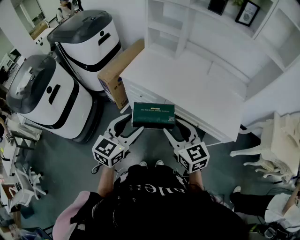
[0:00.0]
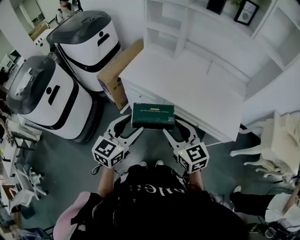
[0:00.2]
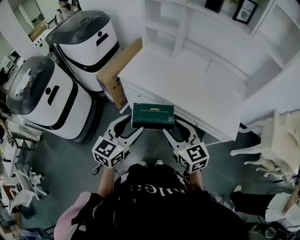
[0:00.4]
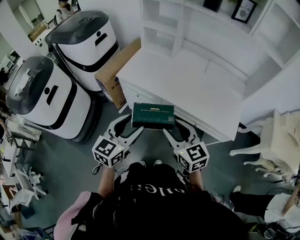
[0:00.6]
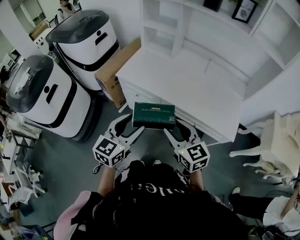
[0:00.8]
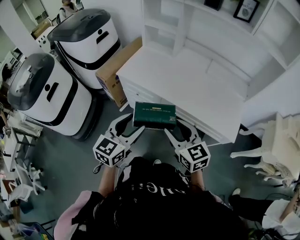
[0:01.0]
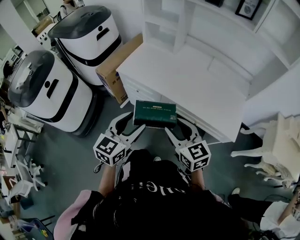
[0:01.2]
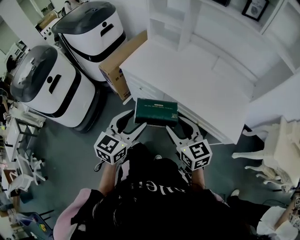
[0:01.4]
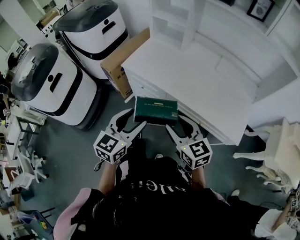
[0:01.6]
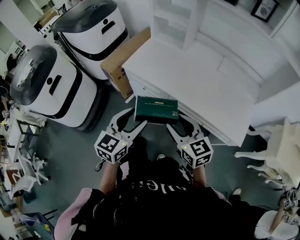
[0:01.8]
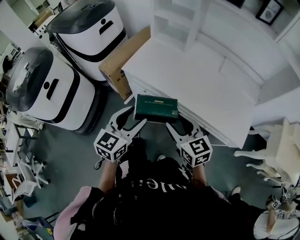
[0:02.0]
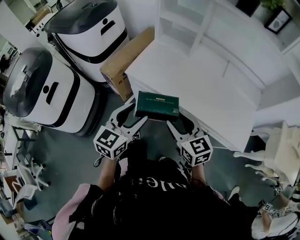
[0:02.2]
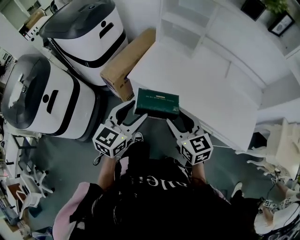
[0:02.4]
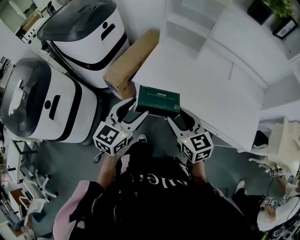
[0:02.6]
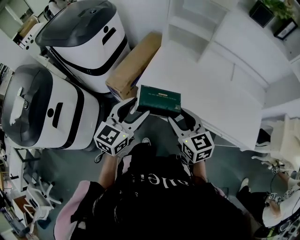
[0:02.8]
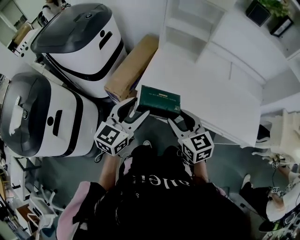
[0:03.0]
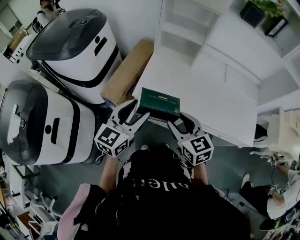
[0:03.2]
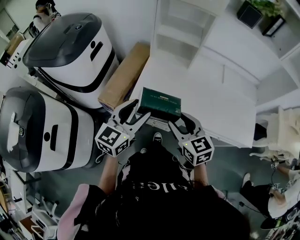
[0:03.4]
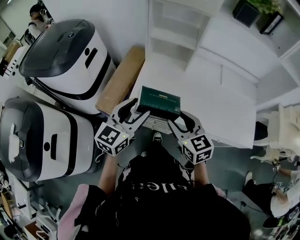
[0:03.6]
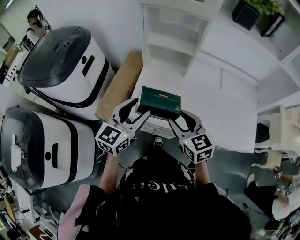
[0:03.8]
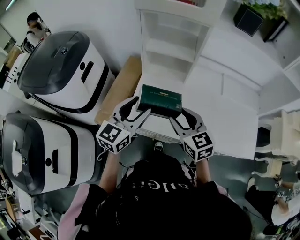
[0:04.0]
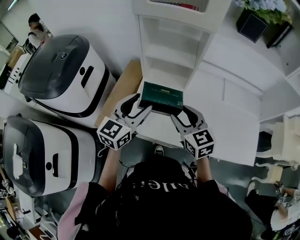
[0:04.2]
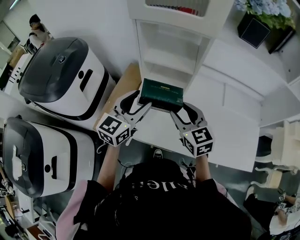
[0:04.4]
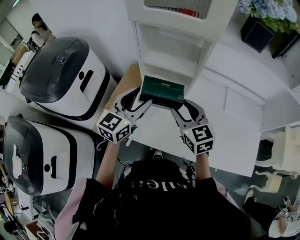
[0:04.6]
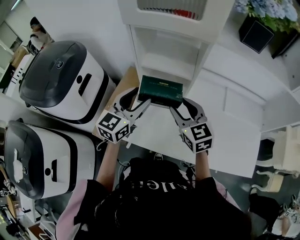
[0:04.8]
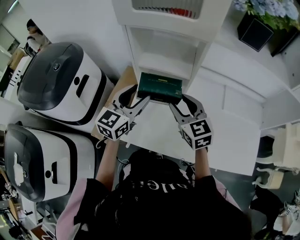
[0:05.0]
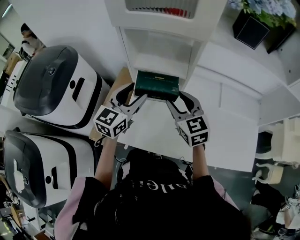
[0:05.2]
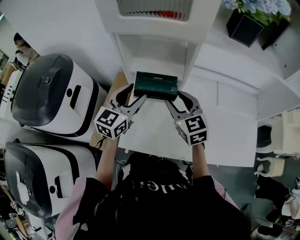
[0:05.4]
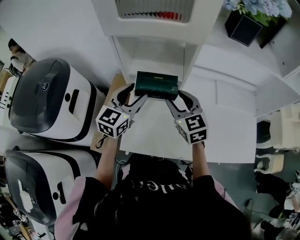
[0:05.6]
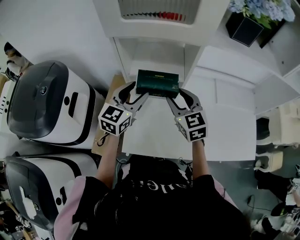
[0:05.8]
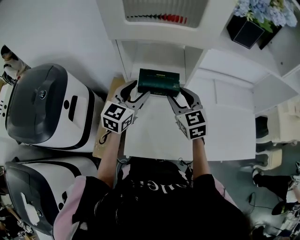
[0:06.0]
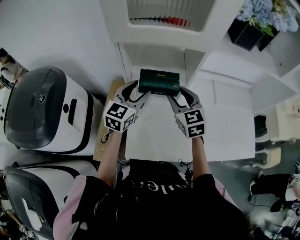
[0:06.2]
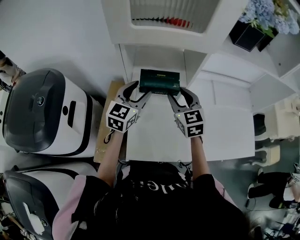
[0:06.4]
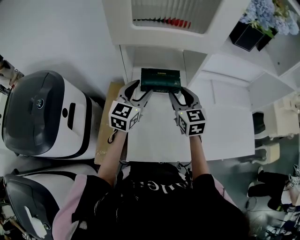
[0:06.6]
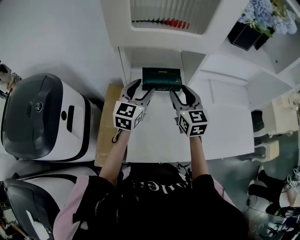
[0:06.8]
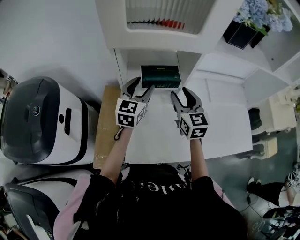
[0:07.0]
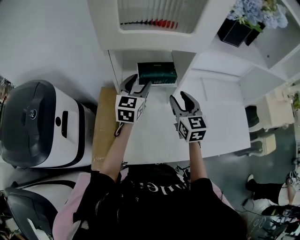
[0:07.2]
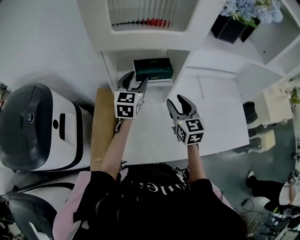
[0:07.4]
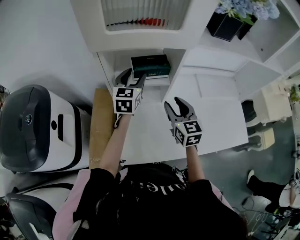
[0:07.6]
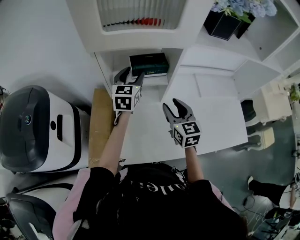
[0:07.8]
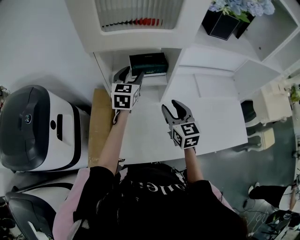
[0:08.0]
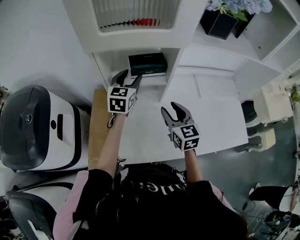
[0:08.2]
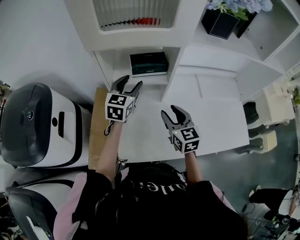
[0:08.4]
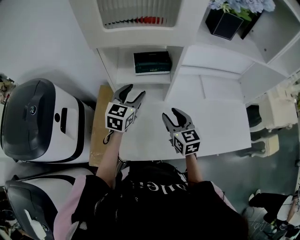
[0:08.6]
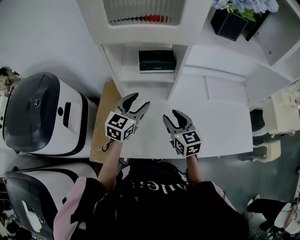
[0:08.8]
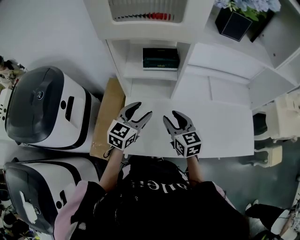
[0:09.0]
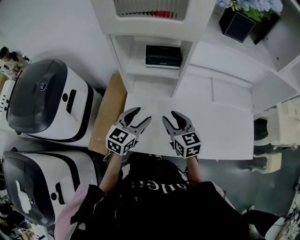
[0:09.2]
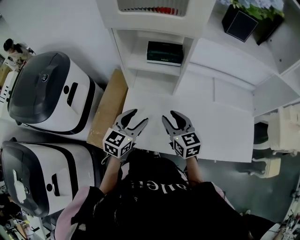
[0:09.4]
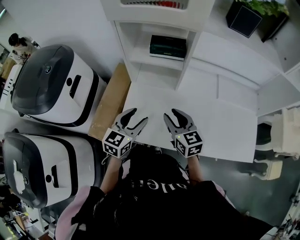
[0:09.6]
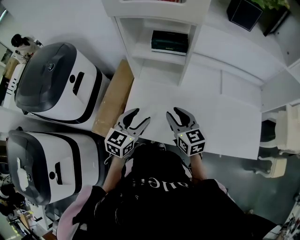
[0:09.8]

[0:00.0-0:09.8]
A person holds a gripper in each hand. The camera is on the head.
0:00.0 to 0:01.4: The grippers both shift to the right by approximately 5 cm.
0:01.4 to 0:02.8: The left gripper shifts approximately 30 cm forward and to the left; the right gripper travels to the left and forward by approximately 30 cm.
0:02.8 to 0:04.2: Both grippers move forward, some 25 cm.
0:04.2 to 0:05.6: Both grippers move forward, about 15 cm.
0:05.6 to 0:07.0: The right gripper shifts some 5 cm forward, and rotates some 20 degrees. Meanwhile the left gripper moves forward, approximately 10 cm.
0:07.0 to 0:08.4: The right gripper goes roughly 10 cm backward and downward.
0:08.4 to 0:09.8: The right gripper moves backward, approximately 10 cm, and rotates some 20 degrees, while the left gripper is displaced backward by roughly 25 cm.

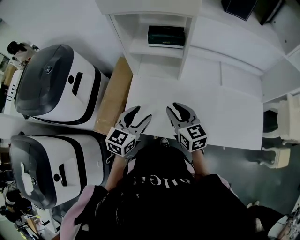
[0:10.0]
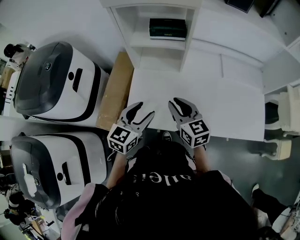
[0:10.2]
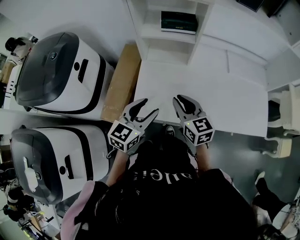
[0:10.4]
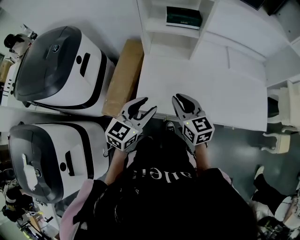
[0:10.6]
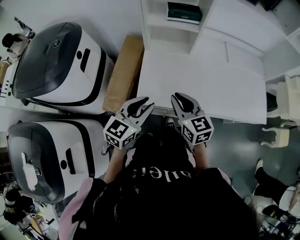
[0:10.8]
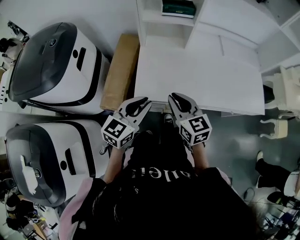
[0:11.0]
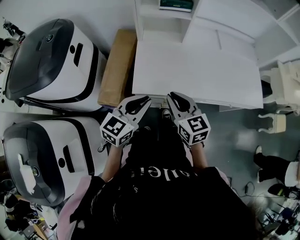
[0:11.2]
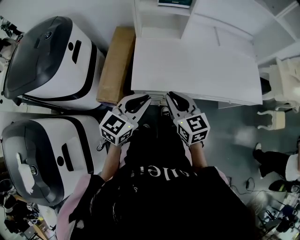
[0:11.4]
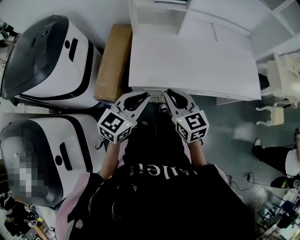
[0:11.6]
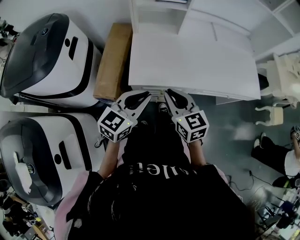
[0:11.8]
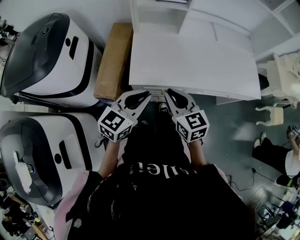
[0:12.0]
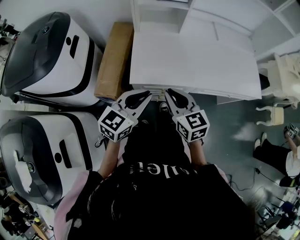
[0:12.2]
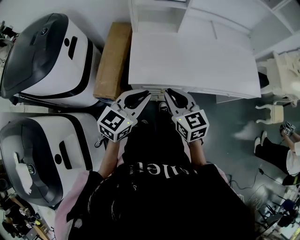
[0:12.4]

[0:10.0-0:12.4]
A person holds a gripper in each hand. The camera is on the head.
0:10.0 to 0:11.2: Both grippers move backward and to the left, roughly 20 cm. The left gripper closes its fingers.
0:11.2 to 0:12.4: The grippers stay close to where they were, moving slightly.

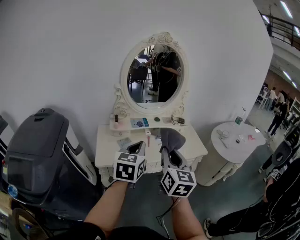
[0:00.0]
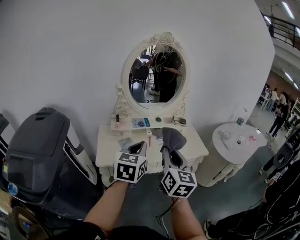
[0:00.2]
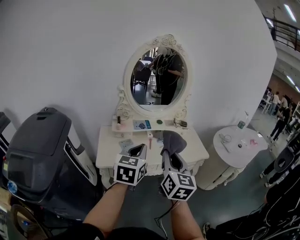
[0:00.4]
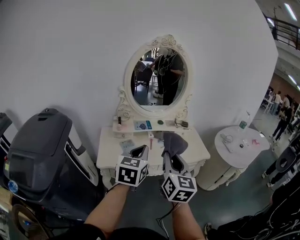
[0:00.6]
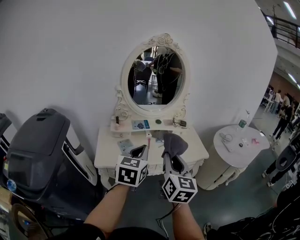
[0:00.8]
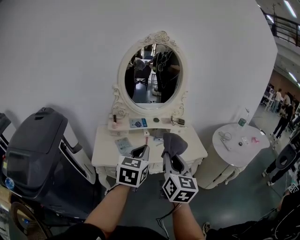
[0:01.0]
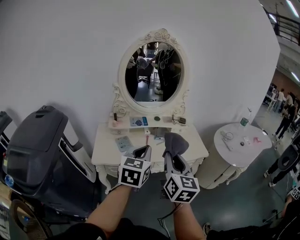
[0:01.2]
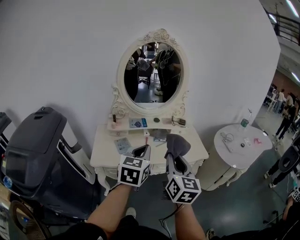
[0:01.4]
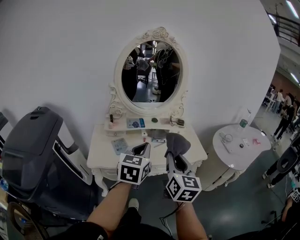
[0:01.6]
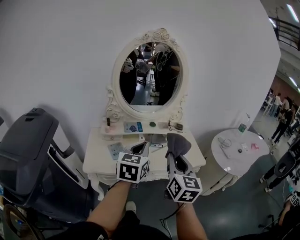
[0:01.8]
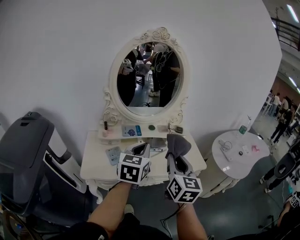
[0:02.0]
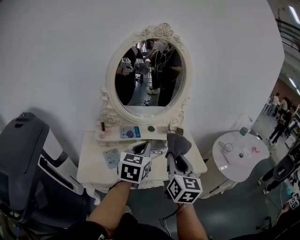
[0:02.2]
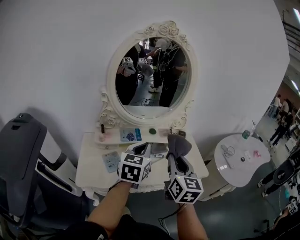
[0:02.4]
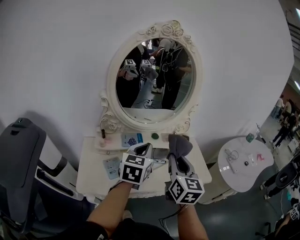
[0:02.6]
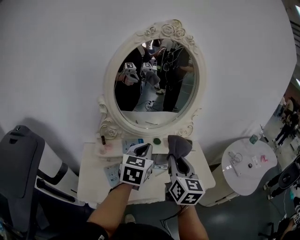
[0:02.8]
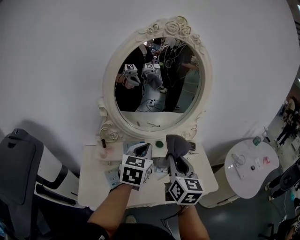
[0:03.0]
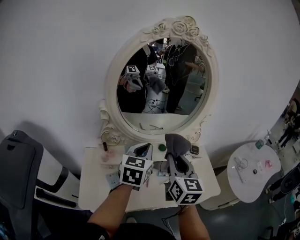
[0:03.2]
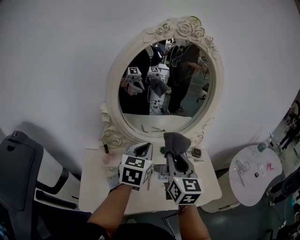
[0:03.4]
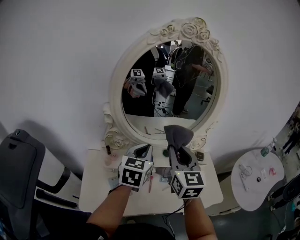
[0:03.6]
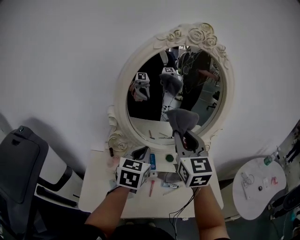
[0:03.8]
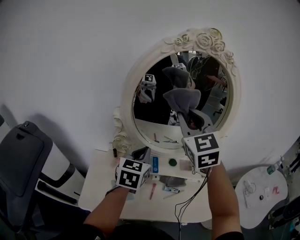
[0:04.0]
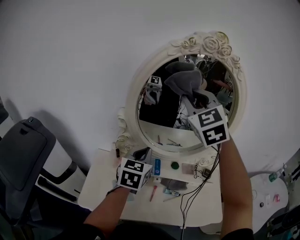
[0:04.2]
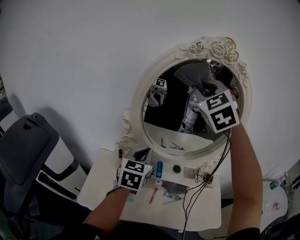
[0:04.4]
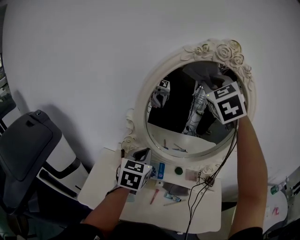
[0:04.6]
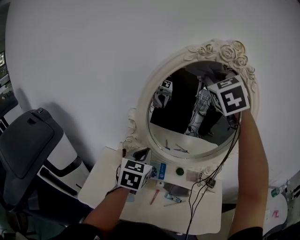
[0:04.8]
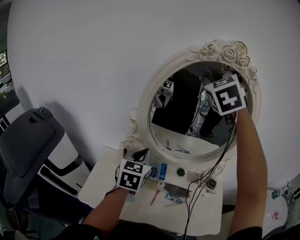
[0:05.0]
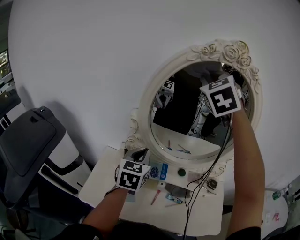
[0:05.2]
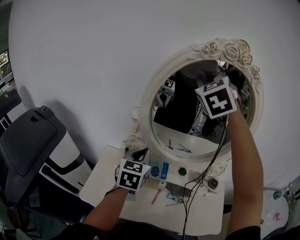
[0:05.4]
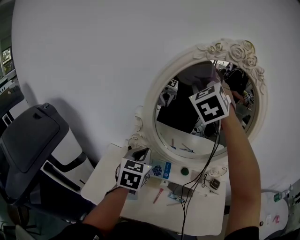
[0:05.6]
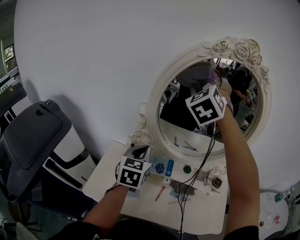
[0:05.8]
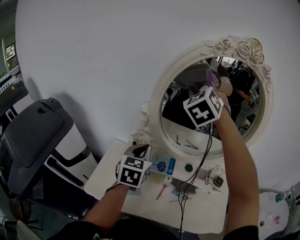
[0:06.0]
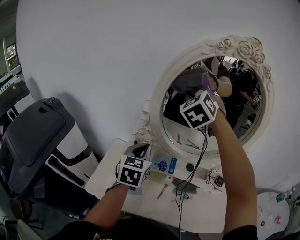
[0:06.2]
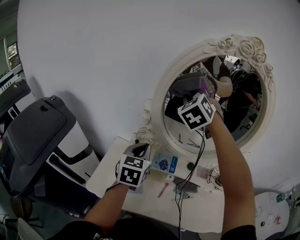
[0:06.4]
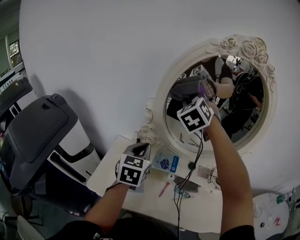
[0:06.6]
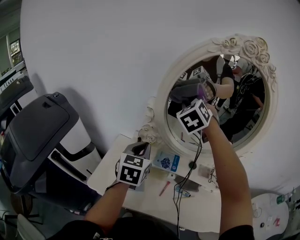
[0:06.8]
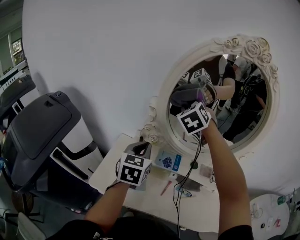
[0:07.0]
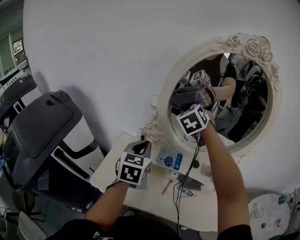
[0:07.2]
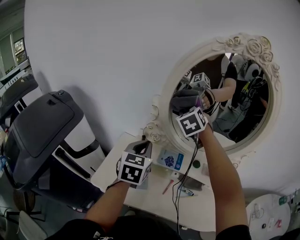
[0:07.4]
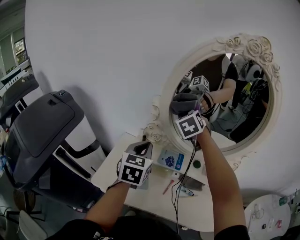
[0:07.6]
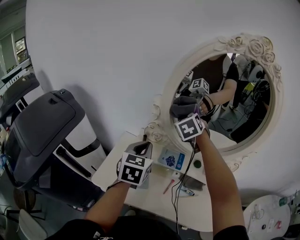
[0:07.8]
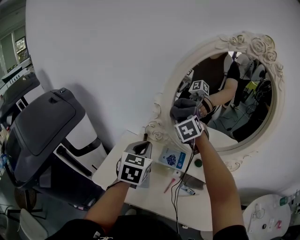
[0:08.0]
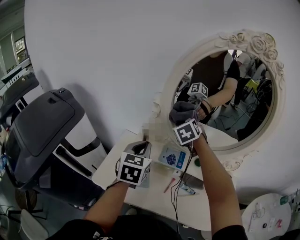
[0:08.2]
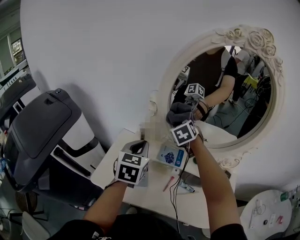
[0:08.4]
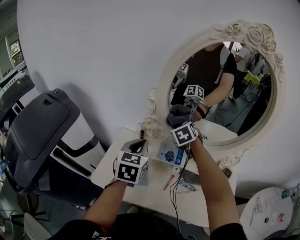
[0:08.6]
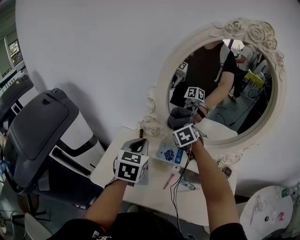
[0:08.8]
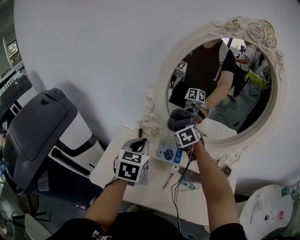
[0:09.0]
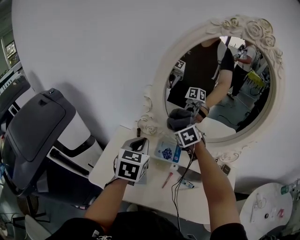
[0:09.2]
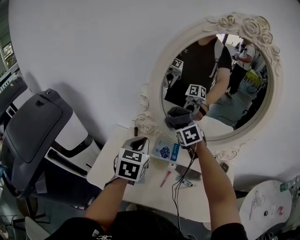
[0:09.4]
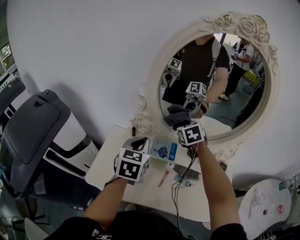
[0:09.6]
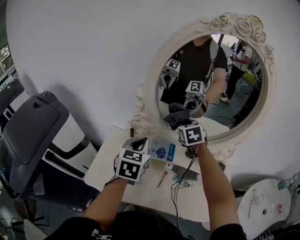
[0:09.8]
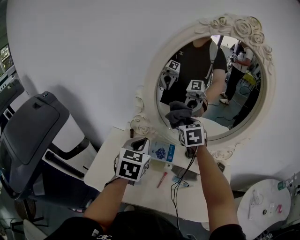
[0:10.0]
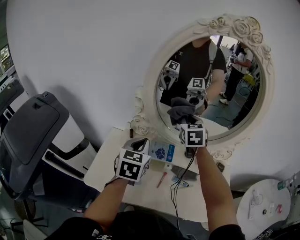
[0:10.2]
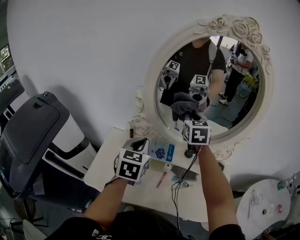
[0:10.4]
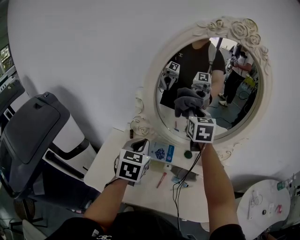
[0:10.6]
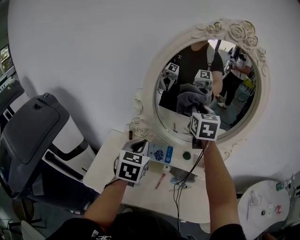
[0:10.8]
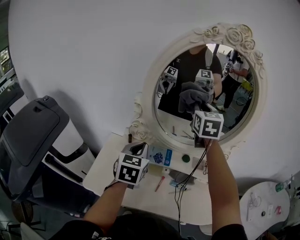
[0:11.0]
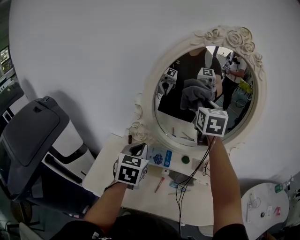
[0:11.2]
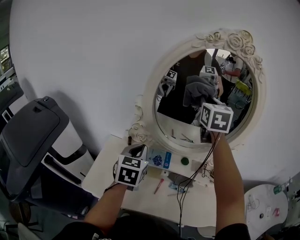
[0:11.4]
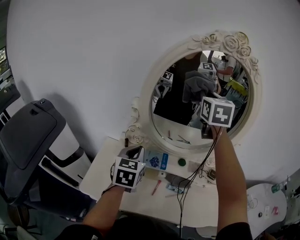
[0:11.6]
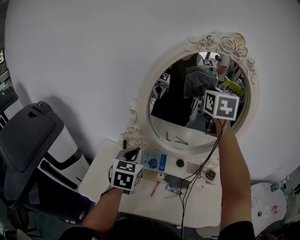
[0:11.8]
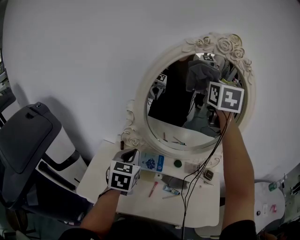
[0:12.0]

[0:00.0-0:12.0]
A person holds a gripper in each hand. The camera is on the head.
0:00.0 to 0:01.6: The left gripper heads to the right and forward, covering roughly 10 cm. Meanwhile the right gripper moves to the right, about 10 cm.
0:01.6 to 0:03.0: The grippers both shift forward by some 30 cm.
0:03.0 to 0:04.4: The right gripper moves upward and forward, approximately 35 cm, and rotates around the line of its fingers by approximately 60 degrees, counterclockwise from behind. Meanwhile the left gripper is displaced to the left and forward by approximately 10 cm.
0:04.4 to 0:06.0: The right gripper goes approximately 10 cm to the left and downward; the left gripper shifts some 5 cm to the left.
0:06.0 to 0:07.6: The right gripper shifts some 20 cm downward, and swivels some 20 degrees.
0:07.6 to 0:09.0: The right gripper goes approximately 15 cm downward.
0:09.0 to 0:10.4: The right gripper moves upward and to the right, approximately 15 cm, and rotates about 30 degrees.
0:10.4 to 0:12.0: The right gripper is displaced upward by approximately 25 cm.
